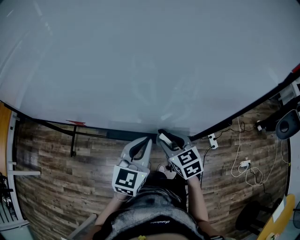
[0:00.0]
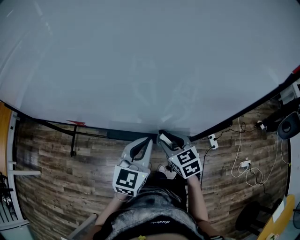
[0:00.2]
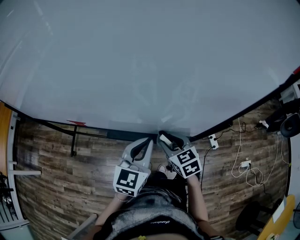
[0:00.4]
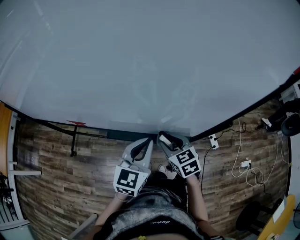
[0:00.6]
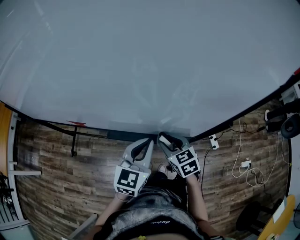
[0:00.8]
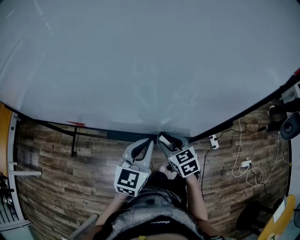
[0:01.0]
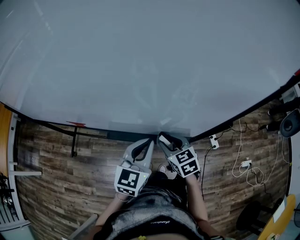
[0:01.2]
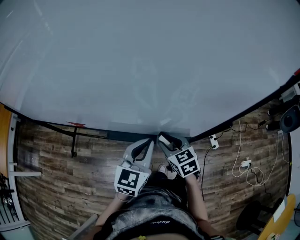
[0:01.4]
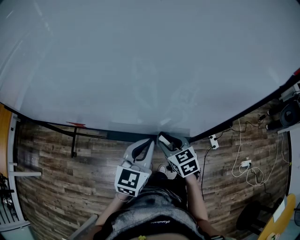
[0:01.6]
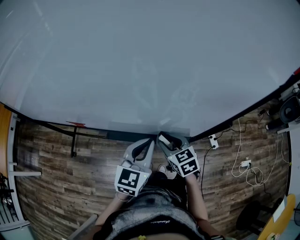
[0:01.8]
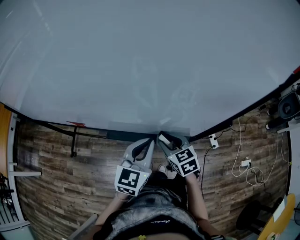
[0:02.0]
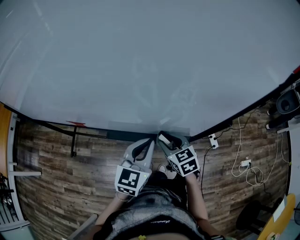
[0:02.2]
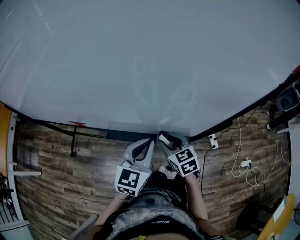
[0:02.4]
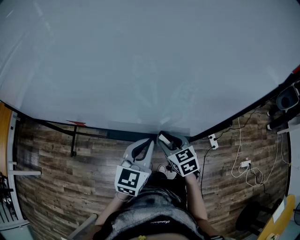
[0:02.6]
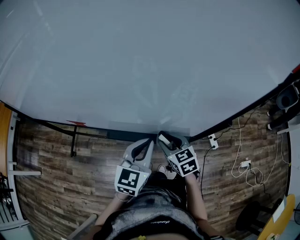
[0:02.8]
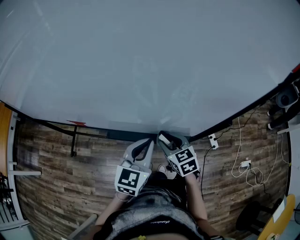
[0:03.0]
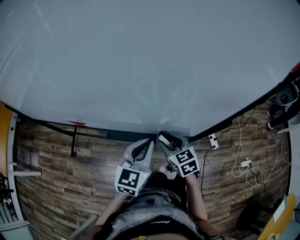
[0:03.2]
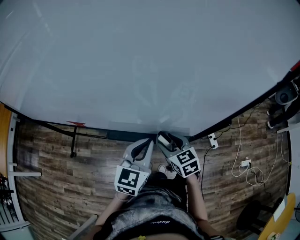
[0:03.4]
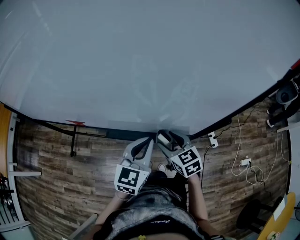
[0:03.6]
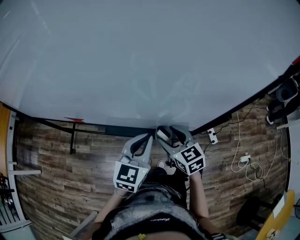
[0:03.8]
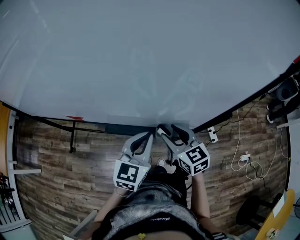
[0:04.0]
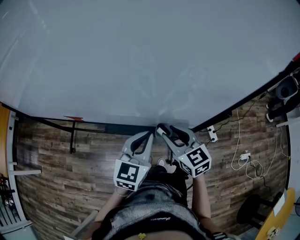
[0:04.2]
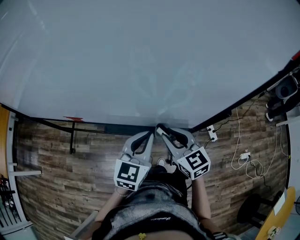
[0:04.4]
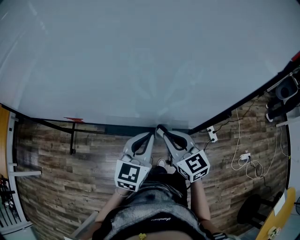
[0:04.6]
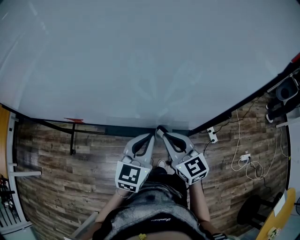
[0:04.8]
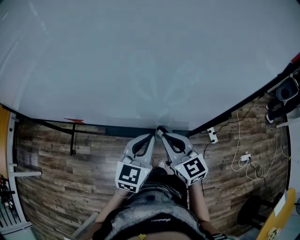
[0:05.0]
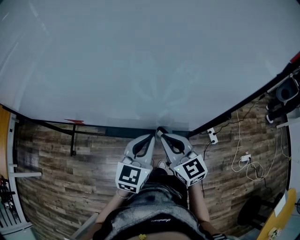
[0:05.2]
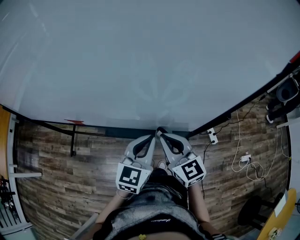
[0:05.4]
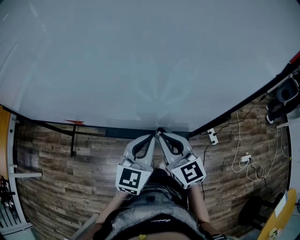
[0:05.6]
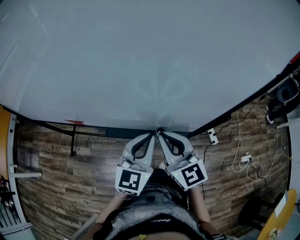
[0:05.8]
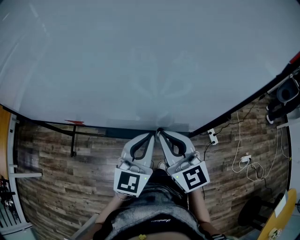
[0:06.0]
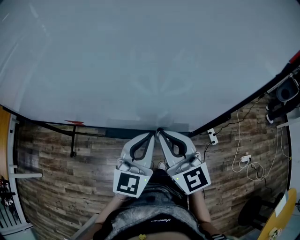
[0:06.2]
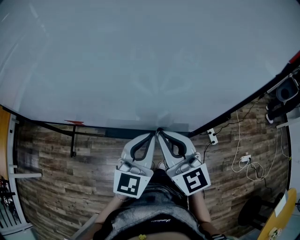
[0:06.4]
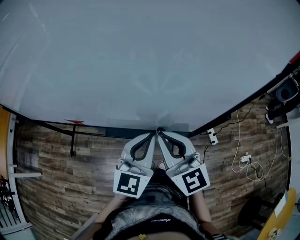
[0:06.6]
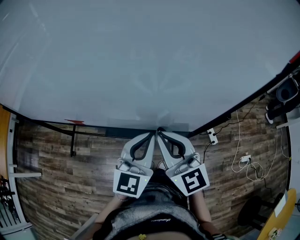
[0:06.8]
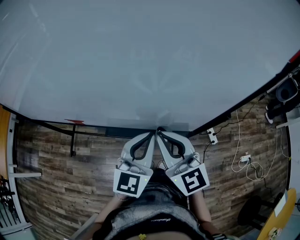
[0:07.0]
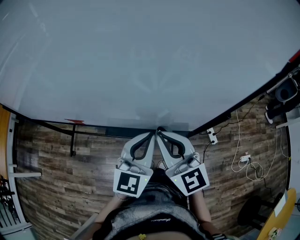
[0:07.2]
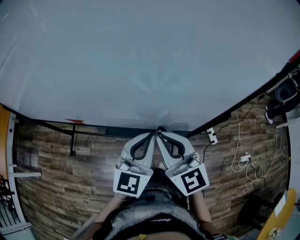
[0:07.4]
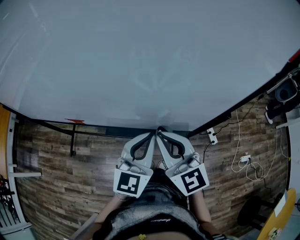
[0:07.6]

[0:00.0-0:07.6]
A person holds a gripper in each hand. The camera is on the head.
0:00.0 to 0:01.6: There are only small adjustments of the grippers.
0:01.6 to 0:03.0: Both grippers stay put.
0:03.0 to 0:04.6: The right gripper moves upward, roughly 10 cm, and closes.
0:04.6 to 0:06.0: The right gripper moves upward, roughly 10 cm, while the left gripper goes approximately 5 cm upward.
0:06.0 to 0:07.6: The grippers move only a little.

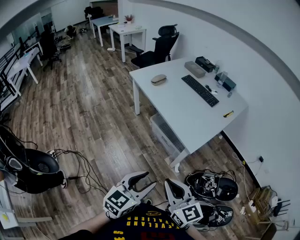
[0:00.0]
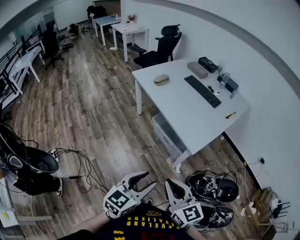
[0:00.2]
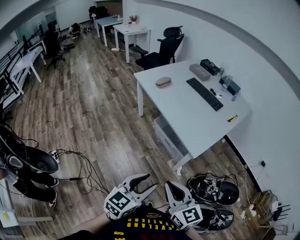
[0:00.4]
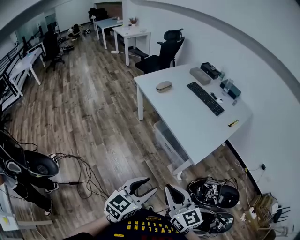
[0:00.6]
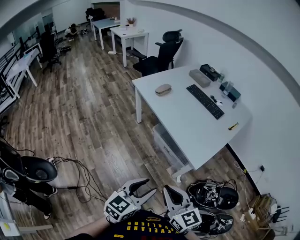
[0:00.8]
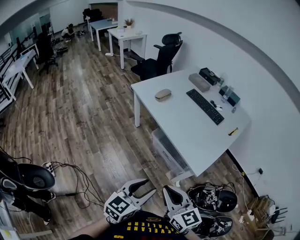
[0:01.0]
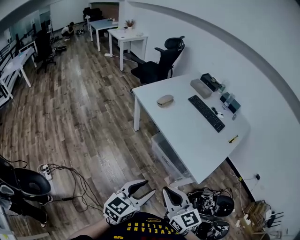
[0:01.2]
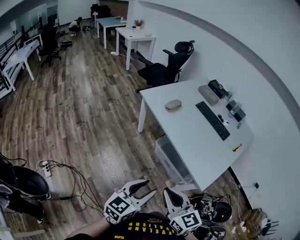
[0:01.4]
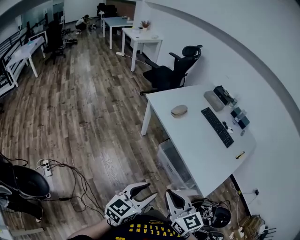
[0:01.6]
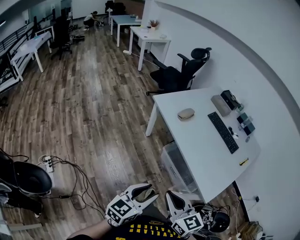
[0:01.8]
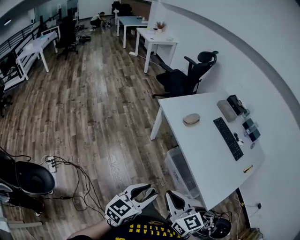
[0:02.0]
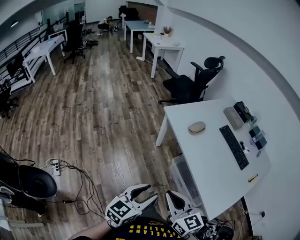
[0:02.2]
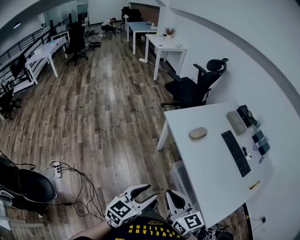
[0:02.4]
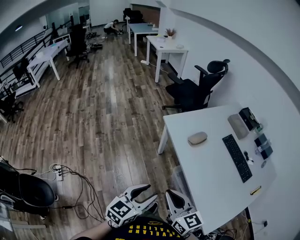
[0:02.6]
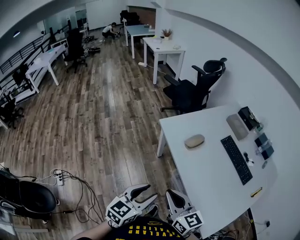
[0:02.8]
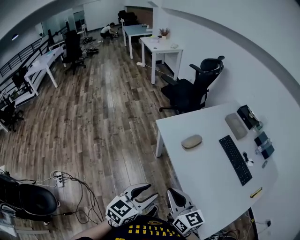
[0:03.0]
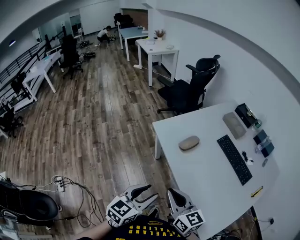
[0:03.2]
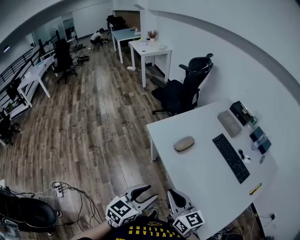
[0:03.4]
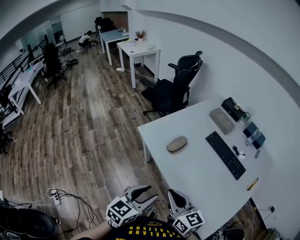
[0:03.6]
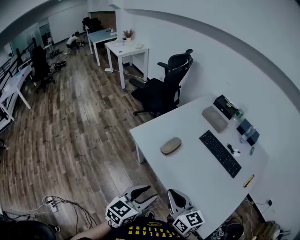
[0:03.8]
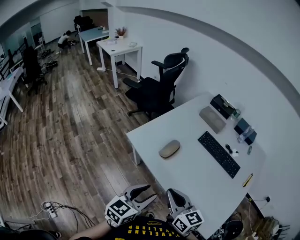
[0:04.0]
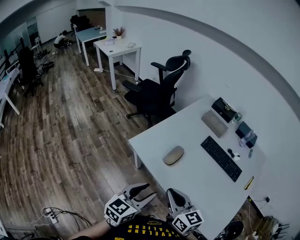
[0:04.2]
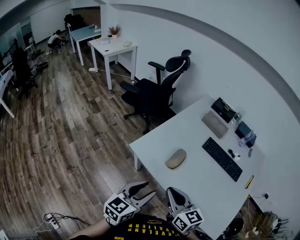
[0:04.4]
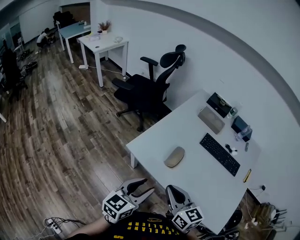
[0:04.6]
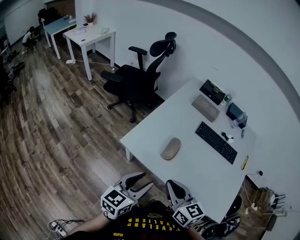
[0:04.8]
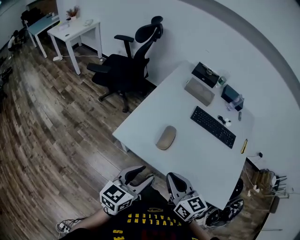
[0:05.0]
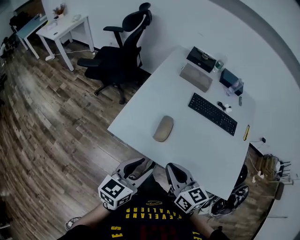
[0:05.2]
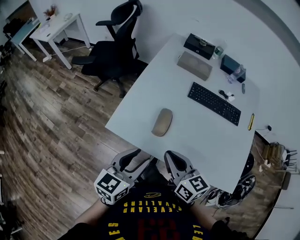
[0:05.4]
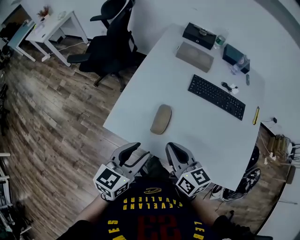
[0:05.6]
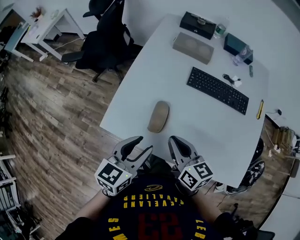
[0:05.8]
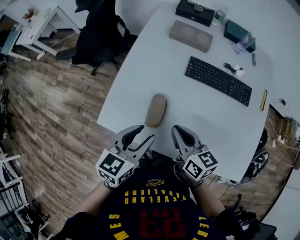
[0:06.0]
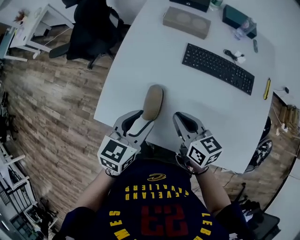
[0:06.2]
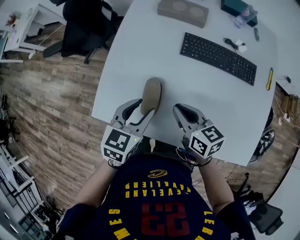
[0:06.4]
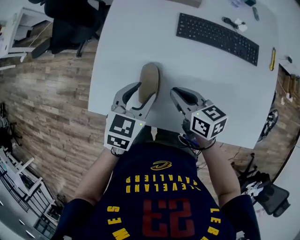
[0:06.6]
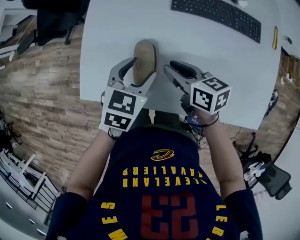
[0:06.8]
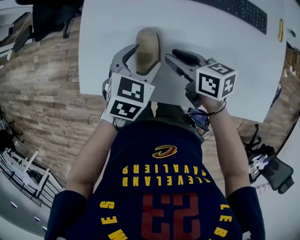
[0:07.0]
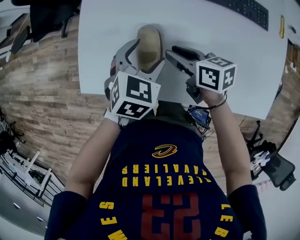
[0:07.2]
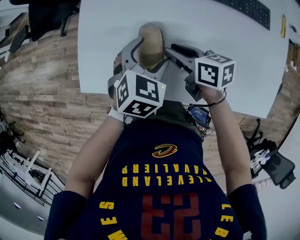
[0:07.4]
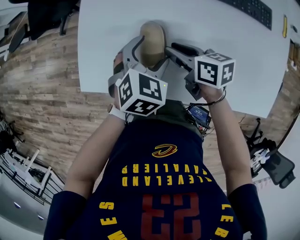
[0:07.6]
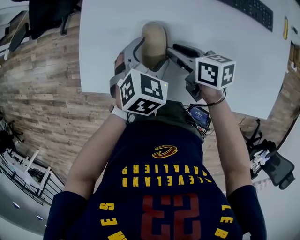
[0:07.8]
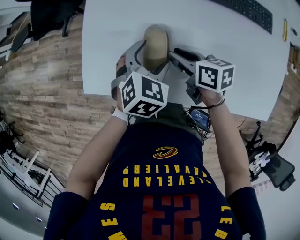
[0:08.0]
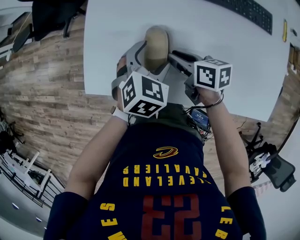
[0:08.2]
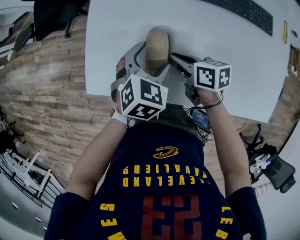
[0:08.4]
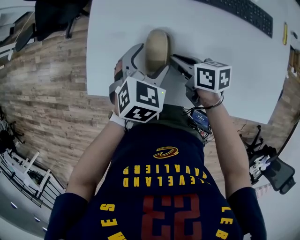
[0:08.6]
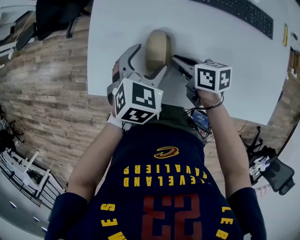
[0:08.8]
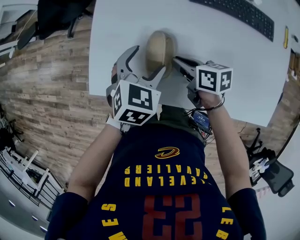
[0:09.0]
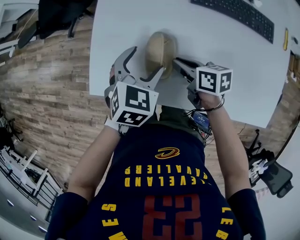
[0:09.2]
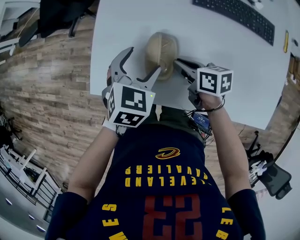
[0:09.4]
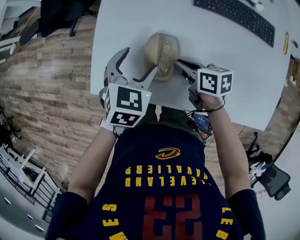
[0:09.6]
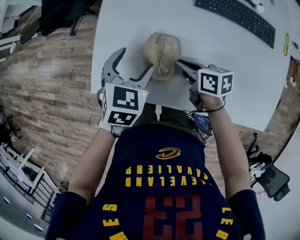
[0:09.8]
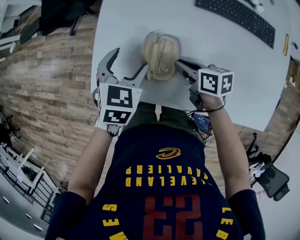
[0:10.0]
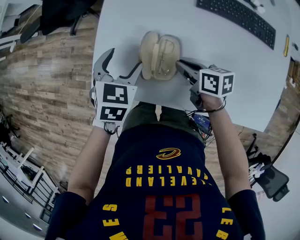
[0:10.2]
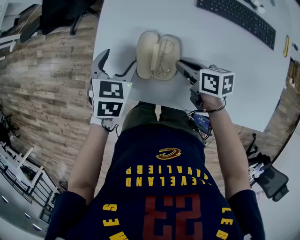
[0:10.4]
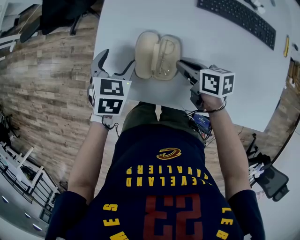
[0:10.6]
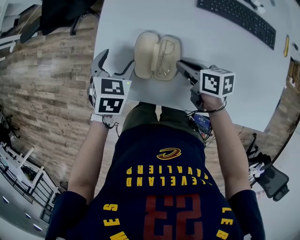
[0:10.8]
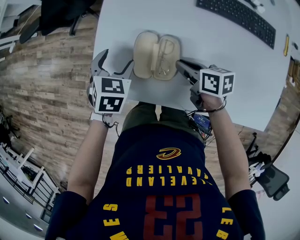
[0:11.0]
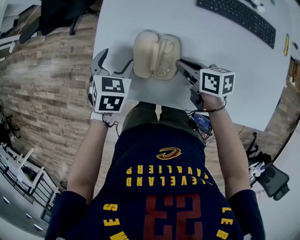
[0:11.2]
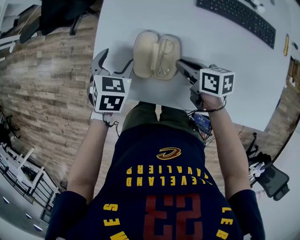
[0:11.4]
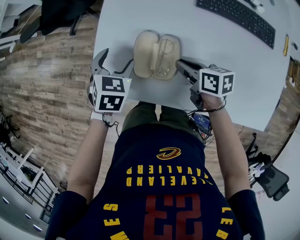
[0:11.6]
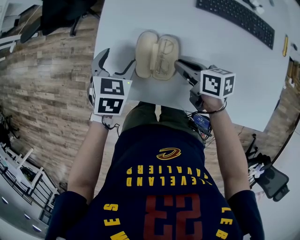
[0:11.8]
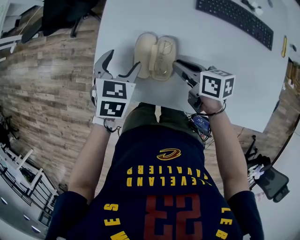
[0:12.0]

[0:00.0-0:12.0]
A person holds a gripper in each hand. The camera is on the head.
0:00.0 to 0:01.6: The two grippers go about 25 cm forward and to the left.
0:01.6 to 0:03.0: Both grippers move forward, roughly 25 cm.
0:03.0 to 0:04.4: Both grippers move forward, approximately 20 cm. The right gripper turns by about 20 degrees. Meanwhile the left gripper changes its angle by roughly 20 degrees.
0:04.4 to 0:06.0: The right gripper heads forward, downward and to the right, covering some 20 cm, and changes its angle by some 30 degrees, while the left gripper travels forward by some 20 cm, and rotates some 20 degrees.
0:06.0 to 0:07.6: The left gripper heads downward and forward, covering roughly 20 cm, swivels about 40 degrees, and opens its fingers; the right gripper travels downward by approximately 15 cm, rotates some 20 degrees, and opens.
0:07.6 to 0:09.0: There are only small adjustments of the grippers.
0:09.0 to 0:10.4: The left gripper is displaced to the left by approximately 10 cm.
0:10.4 to 0:12.0: The grippers move only a little.

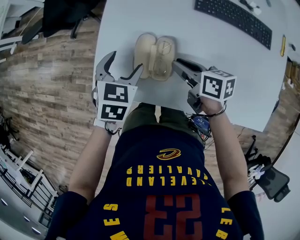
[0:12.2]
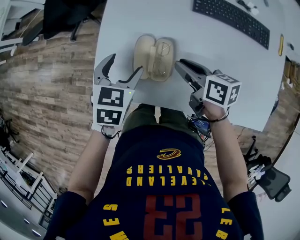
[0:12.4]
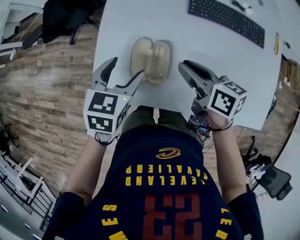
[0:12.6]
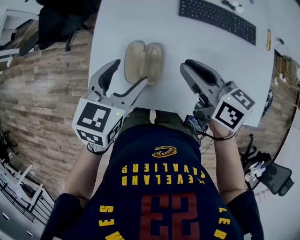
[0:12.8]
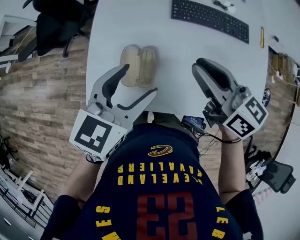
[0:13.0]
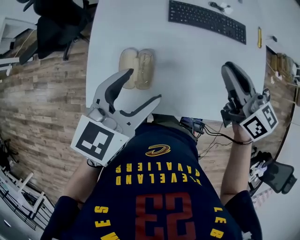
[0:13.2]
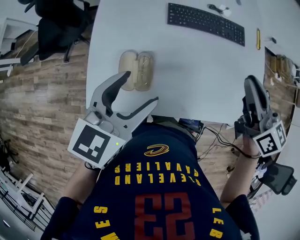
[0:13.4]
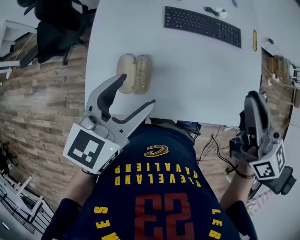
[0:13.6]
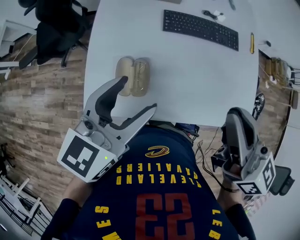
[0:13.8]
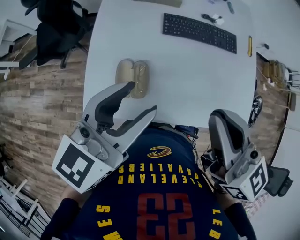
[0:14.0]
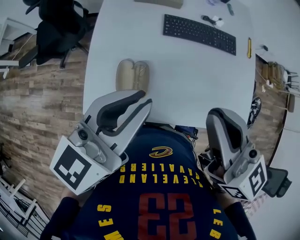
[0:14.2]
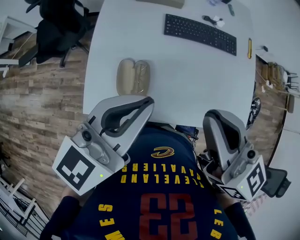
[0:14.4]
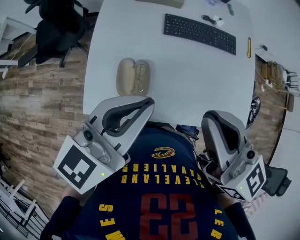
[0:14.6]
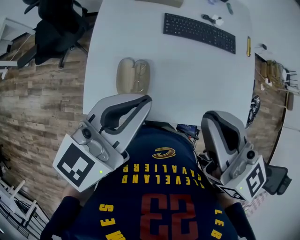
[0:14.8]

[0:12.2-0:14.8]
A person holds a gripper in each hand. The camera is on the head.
0:12.2 to 0:13.4: Both grippers travel together upward, about 25 cm. The left gripper swivels about 30 degrees, while the right gripper turns by some 40 degrees.
0:13.4 to 0:14.8: The left gripper moves upward, roughly 10 cm, and closes its fingers. The right gripper shifts some 20 cm to the left, upward and backward.

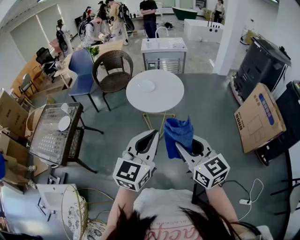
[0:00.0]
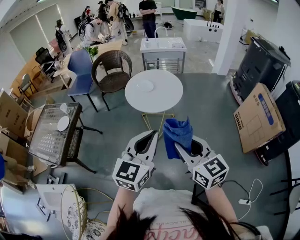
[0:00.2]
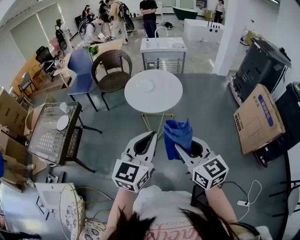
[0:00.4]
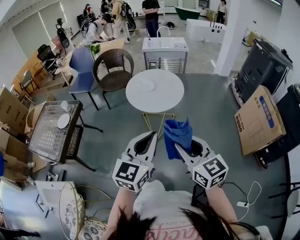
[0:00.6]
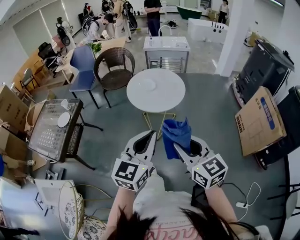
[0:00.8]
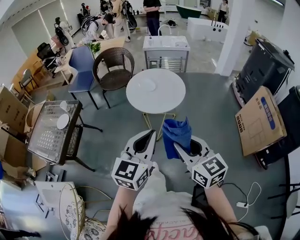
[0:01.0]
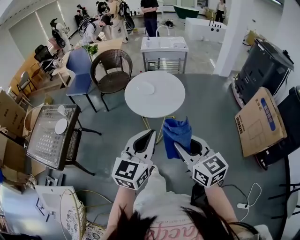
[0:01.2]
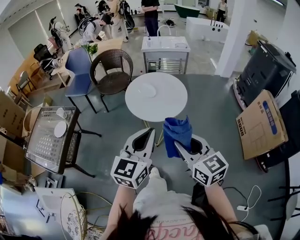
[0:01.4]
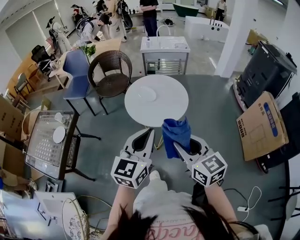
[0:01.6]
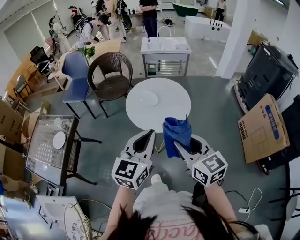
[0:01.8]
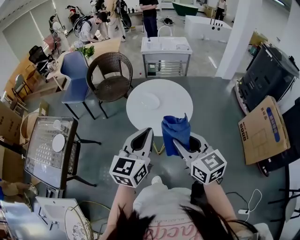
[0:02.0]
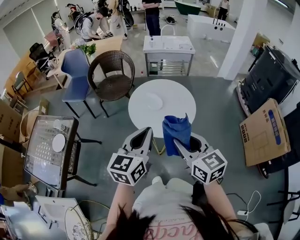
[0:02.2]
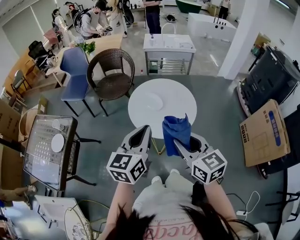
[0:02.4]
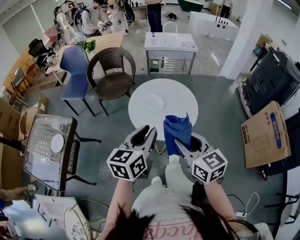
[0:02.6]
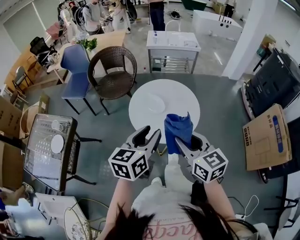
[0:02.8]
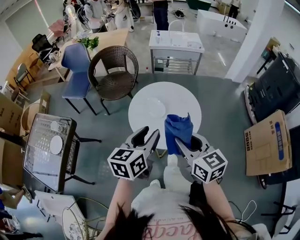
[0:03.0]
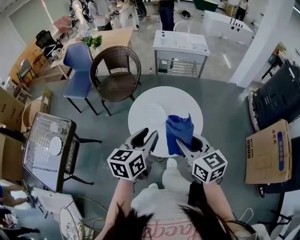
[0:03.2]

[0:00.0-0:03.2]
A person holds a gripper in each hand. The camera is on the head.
0:00.0 to 0:01.6: Both grippers move forward, some 15 cm.
0:01.6 to 0:03.2: Both grippers travel together forward, about 25 cm. The left gripper rotates roughly 30 degrees, and opens up.
